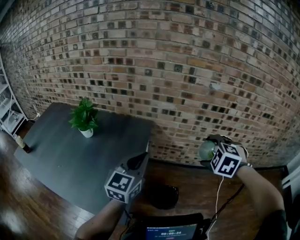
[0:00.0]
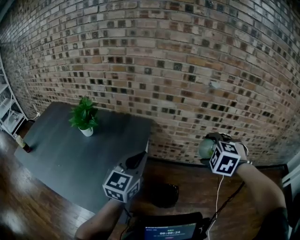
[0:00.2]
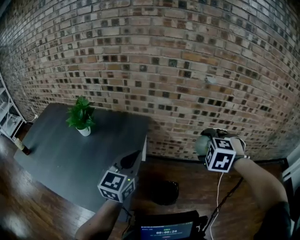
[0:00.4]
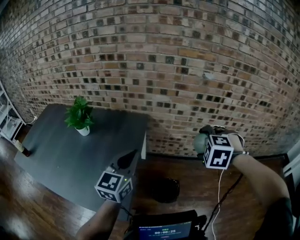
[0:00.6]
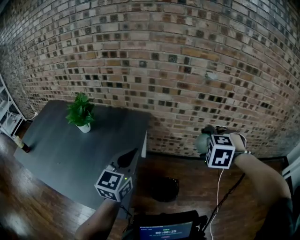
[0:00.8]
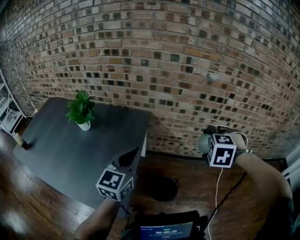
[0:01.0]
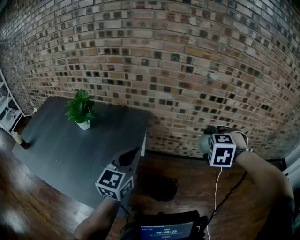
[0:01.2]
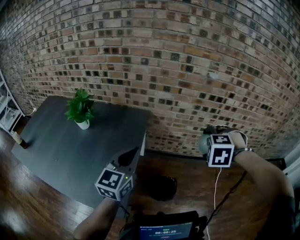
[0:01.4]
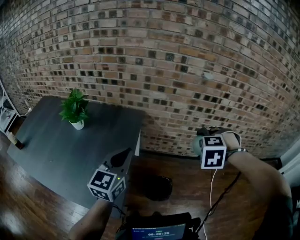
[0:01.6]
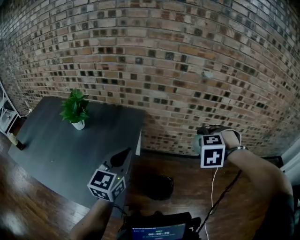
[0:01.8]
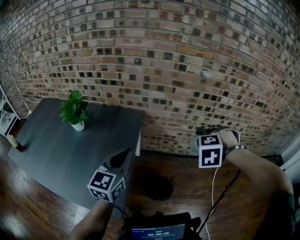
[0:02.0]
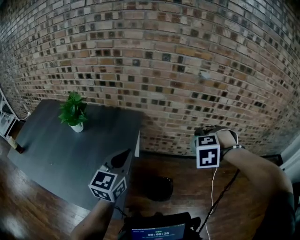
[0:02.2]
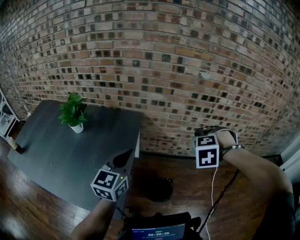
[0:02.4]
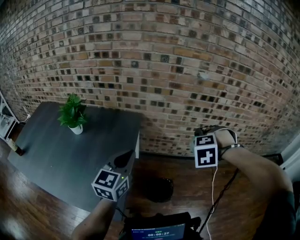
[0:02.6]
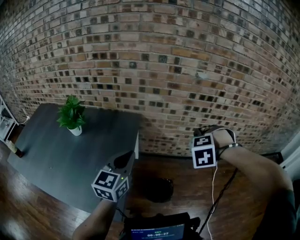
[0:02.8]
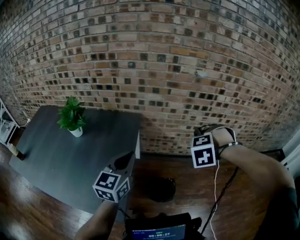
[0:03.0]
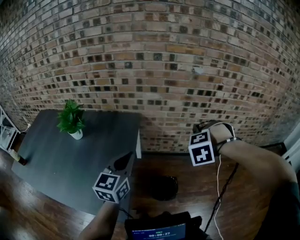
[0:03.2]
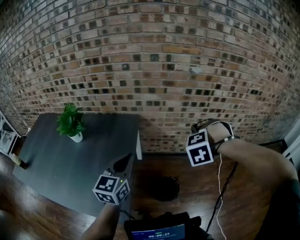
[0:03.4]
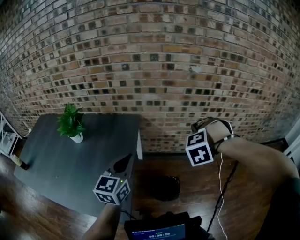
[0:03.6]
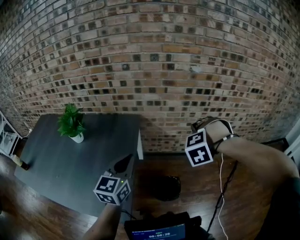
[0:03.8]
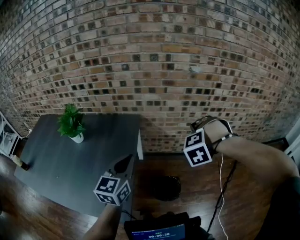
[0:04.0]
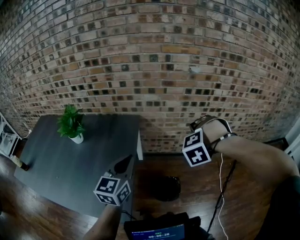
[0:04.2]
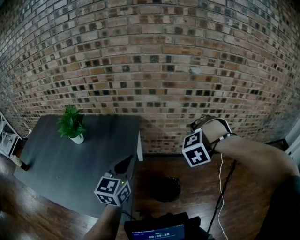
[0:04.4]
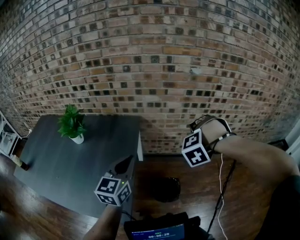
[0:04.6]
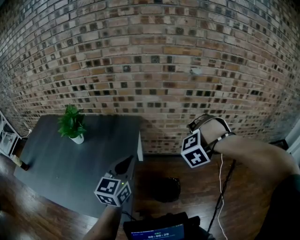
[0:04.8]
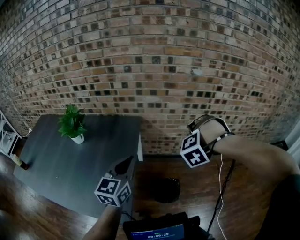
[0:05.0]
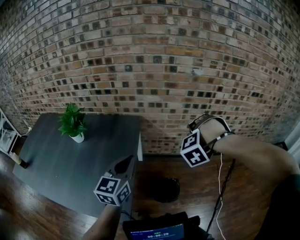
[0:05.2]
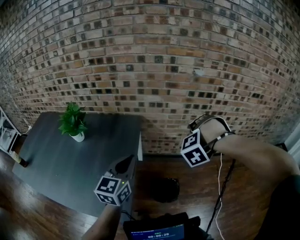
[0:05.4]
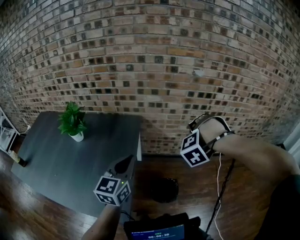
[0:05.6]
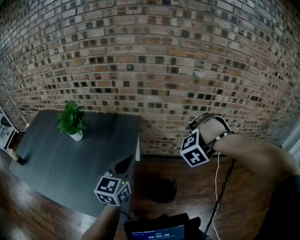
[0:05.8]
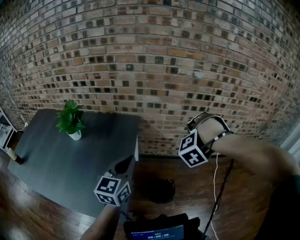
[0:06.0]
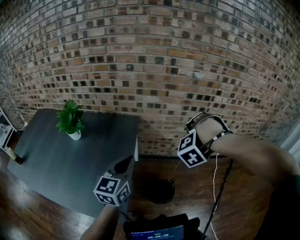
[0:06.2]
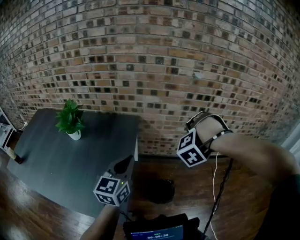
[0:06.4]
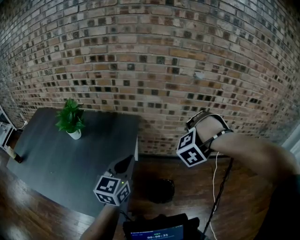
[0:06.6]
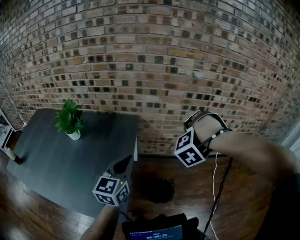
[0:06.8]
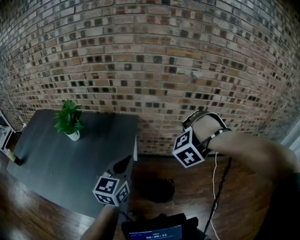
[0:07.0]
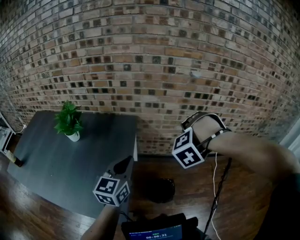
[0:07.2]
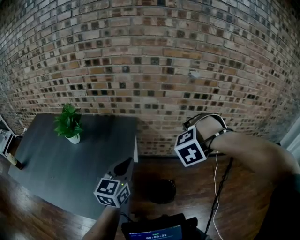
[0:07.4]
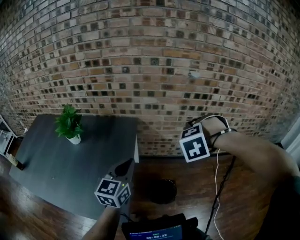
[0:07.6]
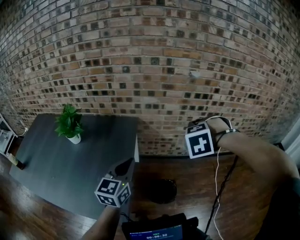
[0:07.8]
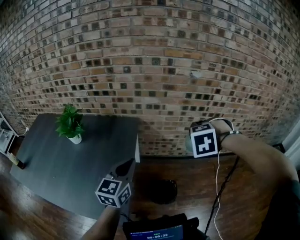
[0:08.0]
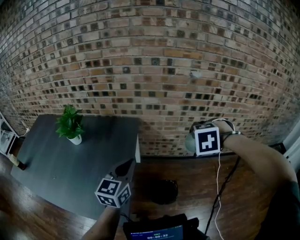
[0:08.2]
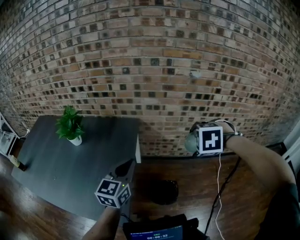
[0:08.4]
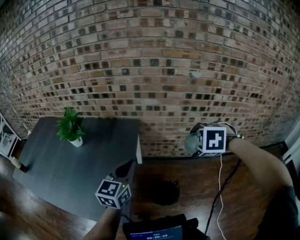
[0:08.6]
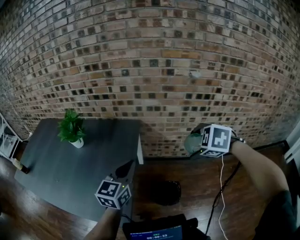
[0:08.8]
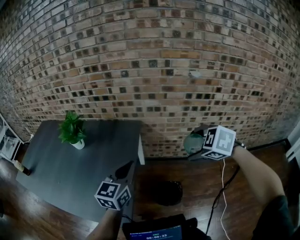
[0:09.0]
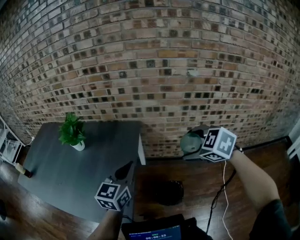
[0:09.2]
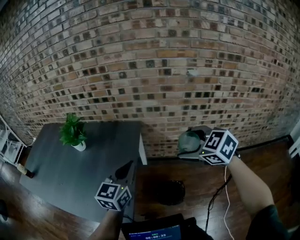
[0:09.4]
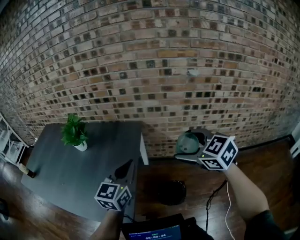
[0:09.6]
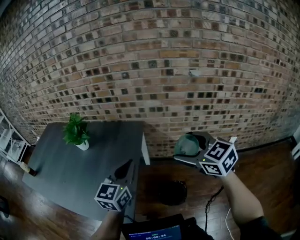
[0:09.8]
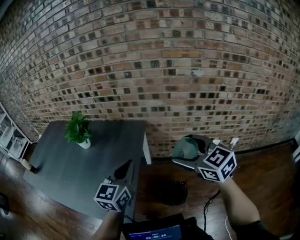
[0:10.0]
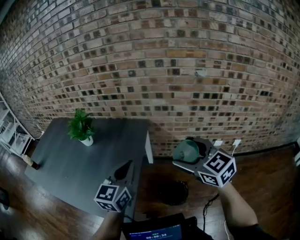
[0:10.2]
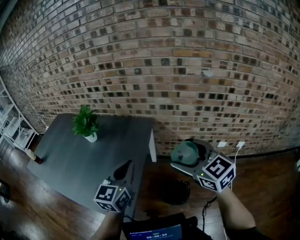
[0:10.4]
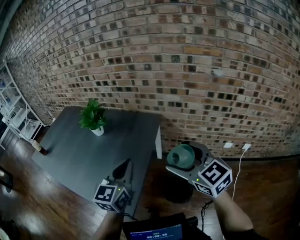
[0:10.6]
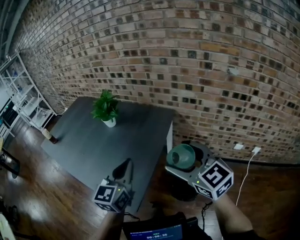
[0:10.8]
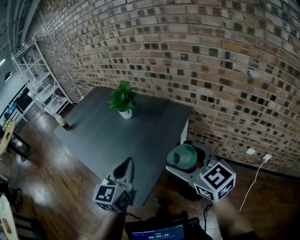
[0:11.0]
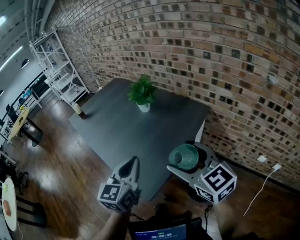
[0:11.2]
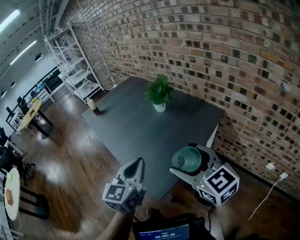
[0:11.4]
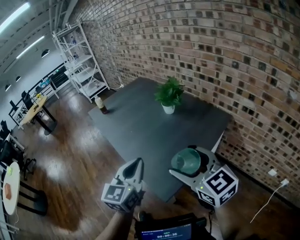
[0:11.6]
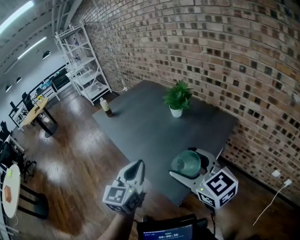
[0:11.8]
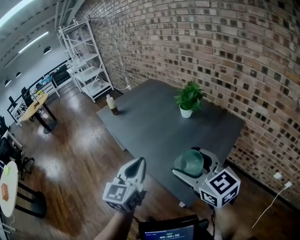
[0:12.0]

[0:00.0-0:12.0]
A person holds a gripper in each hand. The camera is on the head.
0:00.0 to 0:01.6: The right gripper swivels approximately 20 degrees.
0:01.6 to 0:03.0: The grippers move only a little.
0:03.0 to 0:04.4: The grippers make only small movements.
0:04.4 to 0:06.0: The grippers make only small movements.
0:06.0 to 0:07.6: The right gripper turns by about 20 degrees.
0:07.6 to 0:09.0: The right gripper swivels approximately 50 degrees.
0:09.0 to 0:10.4: The right gripper travels to the left and upward by approximately 10 cm, and angles its fingers upward, by about 40 degrees.
0:10.4 to 0:12.0: The left gripper changes place by approximately 40 cm, and turns by some 30 degrees; the right gripper moves roughly 40 cm, and changes its angle by approximately 30 degrees.

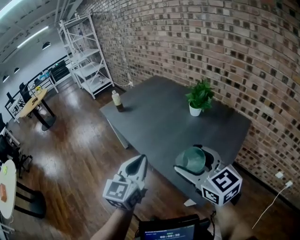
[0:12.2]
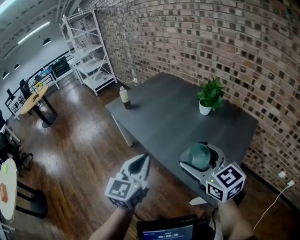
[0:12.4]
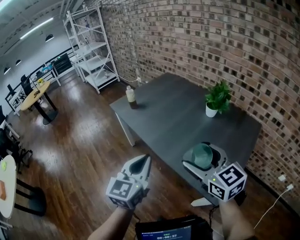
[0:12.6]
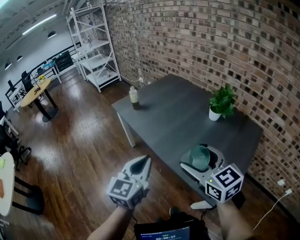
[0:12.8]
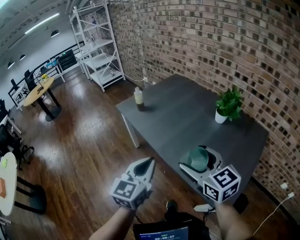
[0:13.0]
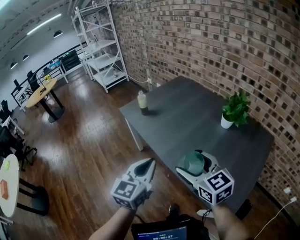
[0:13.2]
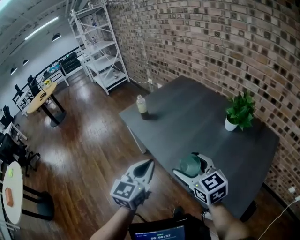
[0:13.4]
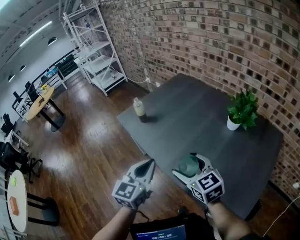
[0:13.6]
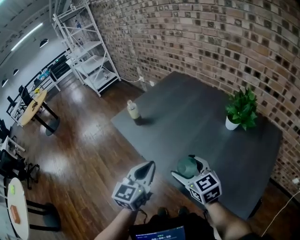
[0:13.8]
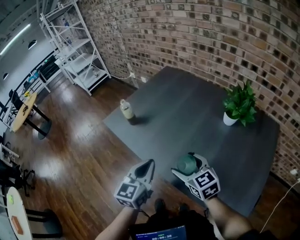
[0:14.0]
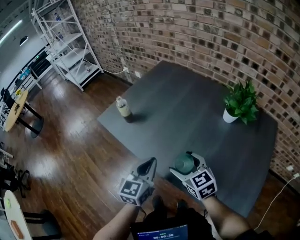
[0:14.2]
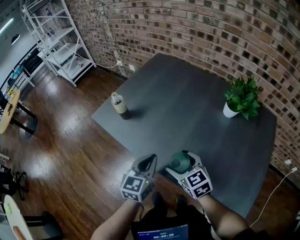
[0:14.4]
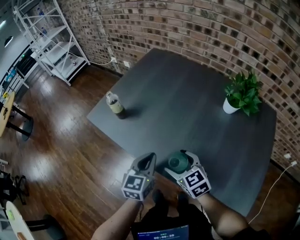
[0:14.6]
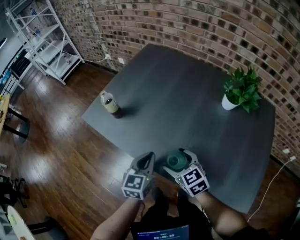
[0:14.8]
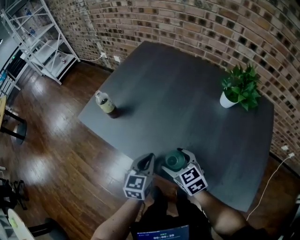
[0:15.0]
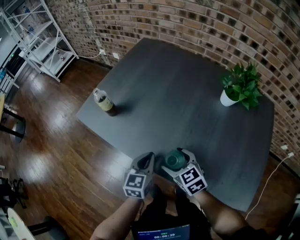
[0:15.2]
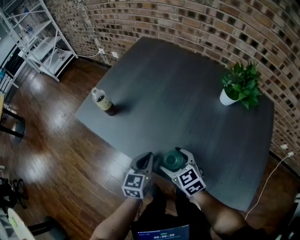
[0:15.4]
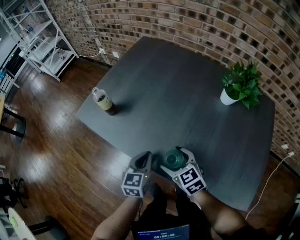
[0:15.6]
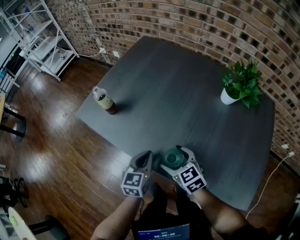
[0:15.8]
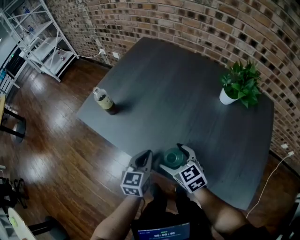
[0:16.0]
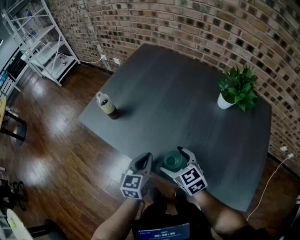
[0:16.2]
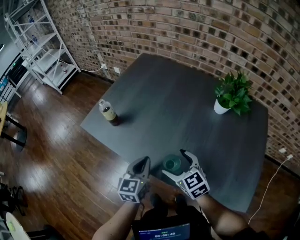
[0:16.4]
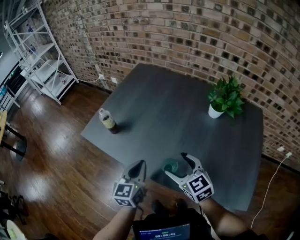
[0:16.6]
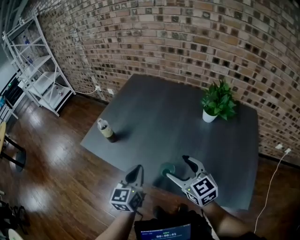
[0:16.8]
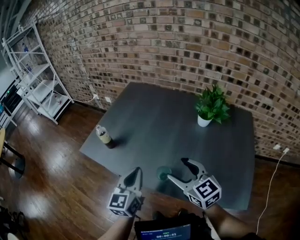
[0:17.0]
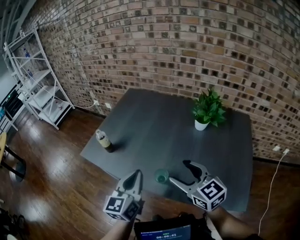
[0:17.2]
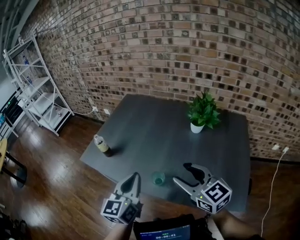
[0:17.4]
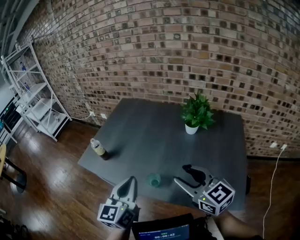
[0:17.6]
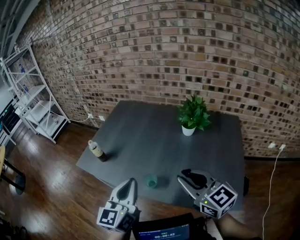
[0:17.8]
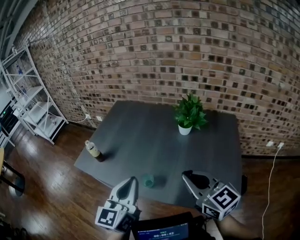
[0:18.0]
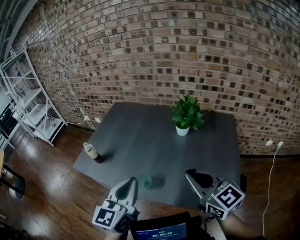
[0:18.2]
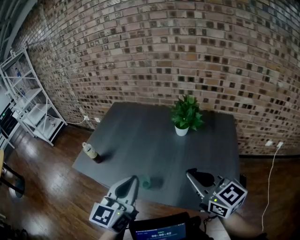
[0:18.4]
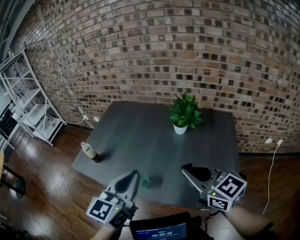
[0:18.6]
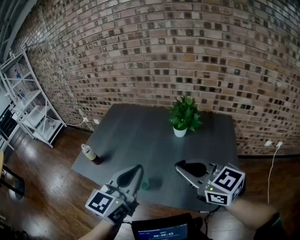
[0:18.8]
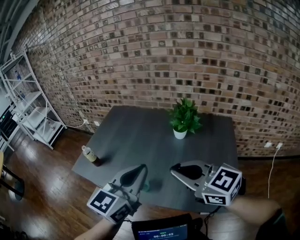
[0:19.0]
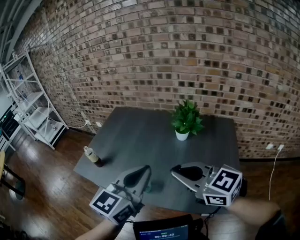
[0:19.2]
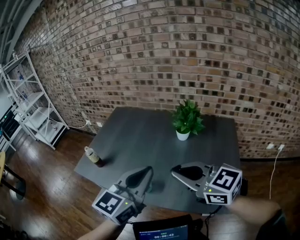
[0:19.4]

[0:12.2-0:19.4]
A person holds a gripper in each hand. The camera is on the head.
0:12.2 to 0:13.6: The right gripper travels forward, to the left and downward by some 30 cm, while the left gripper moves forward and to the left, approximately 25 cm.
0:13.6 to 0:15.0: The two grippers go some 25 cm downward and forward. The right gripper swivels some 20 degrees.
0:15.0 to 0:16.6: The grippers both shift upward by approximately 10 cm.
0:16.6 to 0:18.0: The right gripper travels upward, to the right and backward by some 25 cm, and closes; the left gripper moves upward, backward and to the right, some 20 cm.
0:18.0 to 0:19.4: The left gripper heads to the right and upward, covering roughly 10 cm; the right gripper goes approximately 5 cm upward.

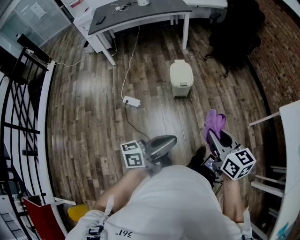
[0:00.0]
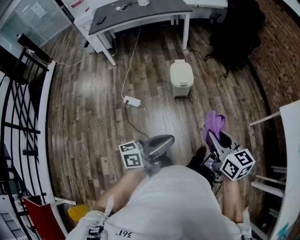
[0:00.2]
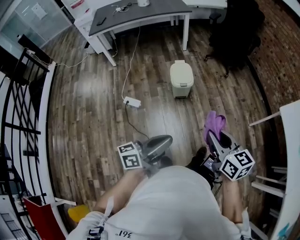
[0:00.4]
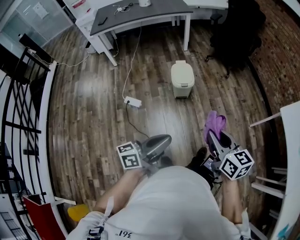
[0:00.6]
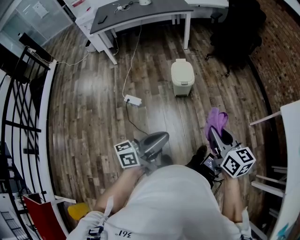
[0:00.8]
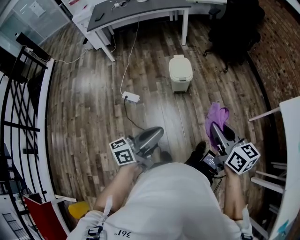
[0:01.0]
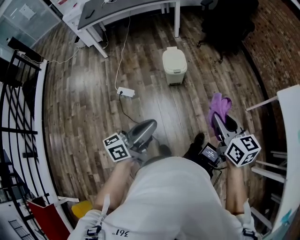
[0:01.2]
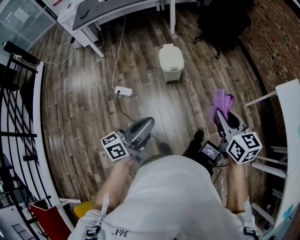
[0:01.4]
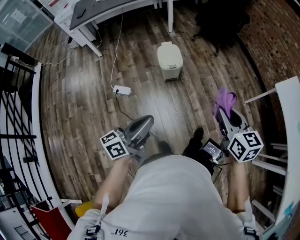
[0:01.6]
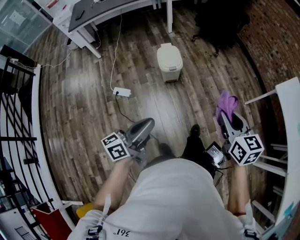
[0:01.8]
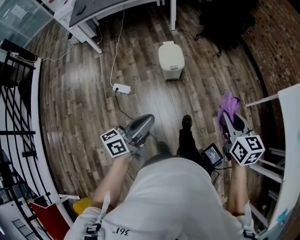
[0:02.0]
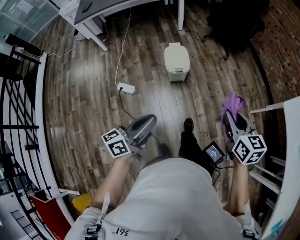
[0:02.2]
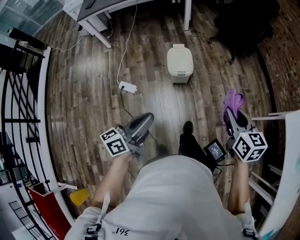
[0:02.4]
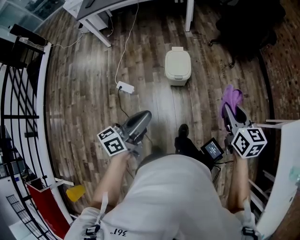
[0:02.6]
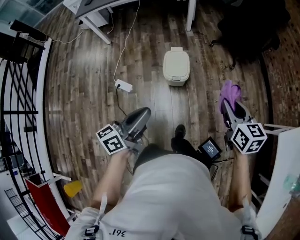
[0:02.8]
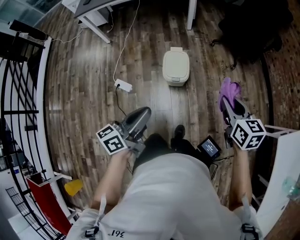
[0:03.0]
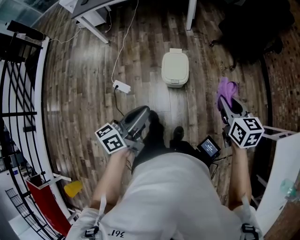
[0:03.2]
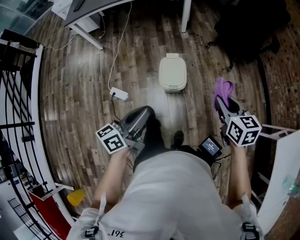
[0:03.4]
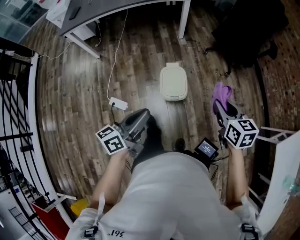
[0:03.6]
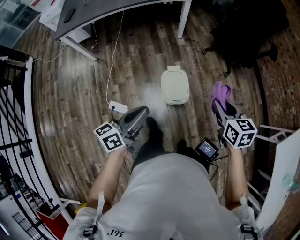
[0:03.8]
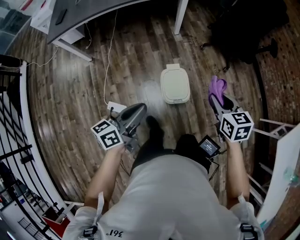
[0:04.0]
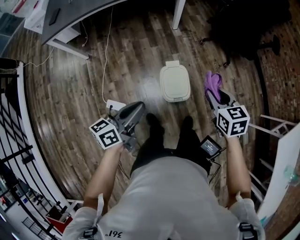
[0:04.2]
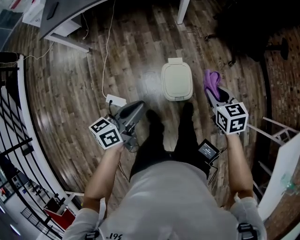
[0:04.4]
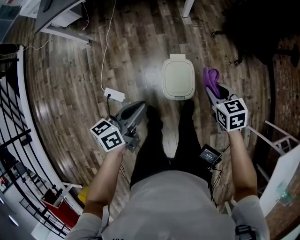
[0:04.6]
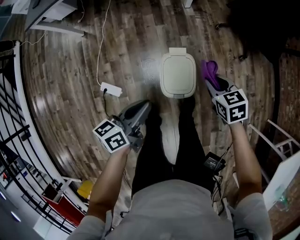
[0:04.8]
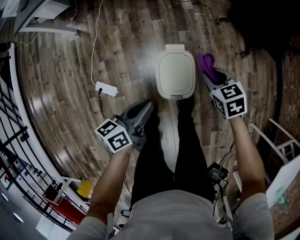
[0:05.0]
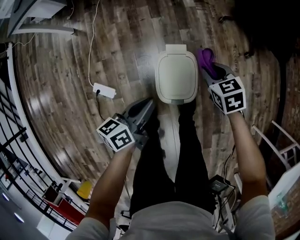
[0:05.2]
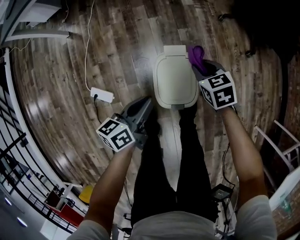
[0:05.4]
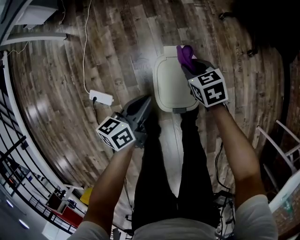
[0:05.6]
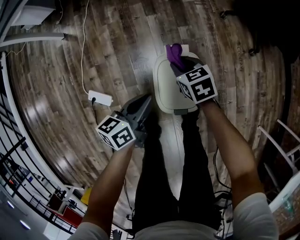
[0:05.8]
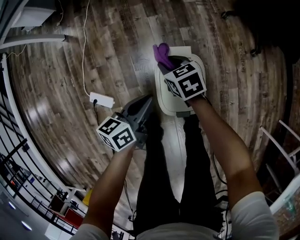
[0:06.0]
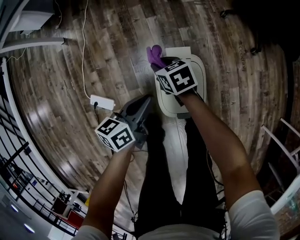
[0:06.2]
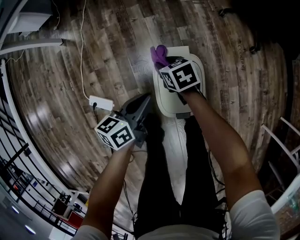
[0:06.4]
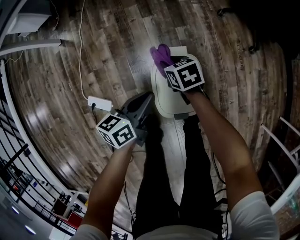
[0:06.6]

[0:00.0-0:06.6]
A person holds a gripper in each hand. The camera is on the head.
0:00.0 to 0:01.6: The left gripper ends up about 5 cm from where it was.
0:01.6 to 0:03.2: The left gripper ends up about 30 cm from where it was.
0:03.2 to 0:05.0: The left gripper ends up approximately 40 cm from where it was.
0:05.0 to 0:06.6: The left gripper shifts approximately 20 cm downward.
